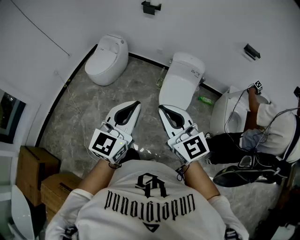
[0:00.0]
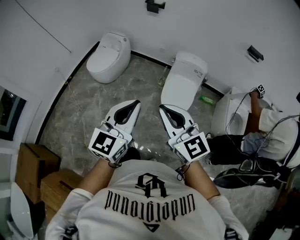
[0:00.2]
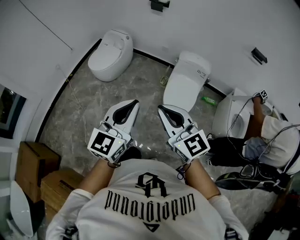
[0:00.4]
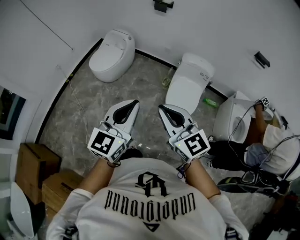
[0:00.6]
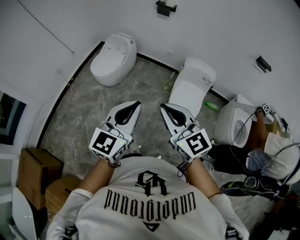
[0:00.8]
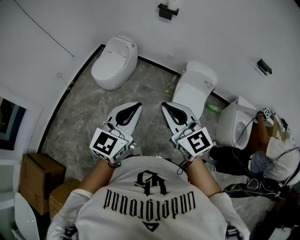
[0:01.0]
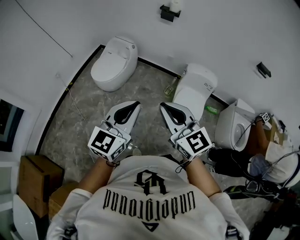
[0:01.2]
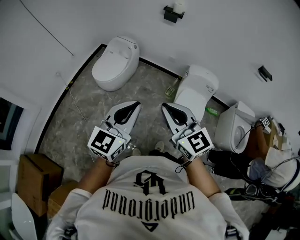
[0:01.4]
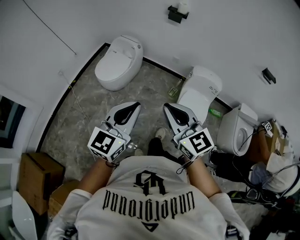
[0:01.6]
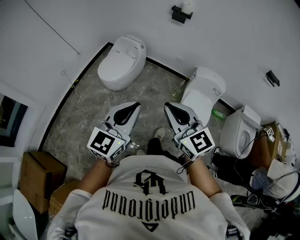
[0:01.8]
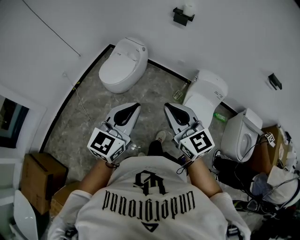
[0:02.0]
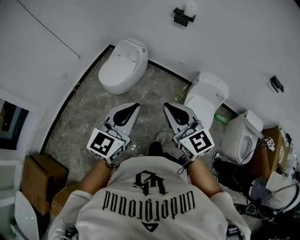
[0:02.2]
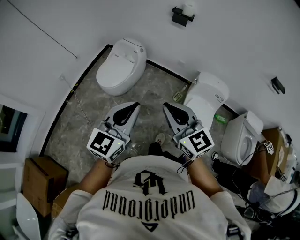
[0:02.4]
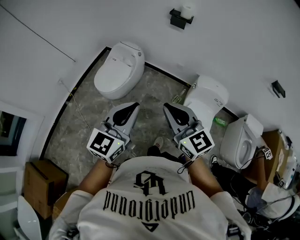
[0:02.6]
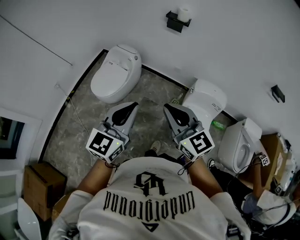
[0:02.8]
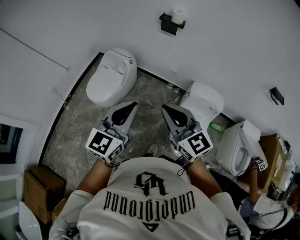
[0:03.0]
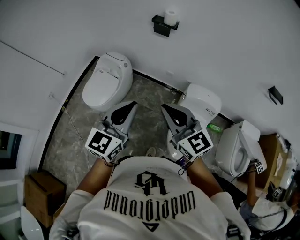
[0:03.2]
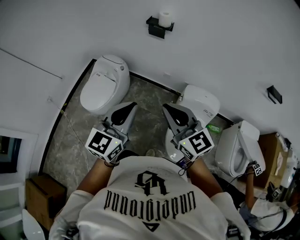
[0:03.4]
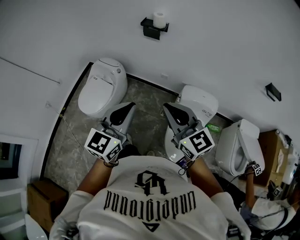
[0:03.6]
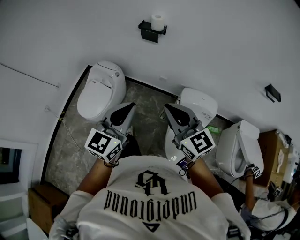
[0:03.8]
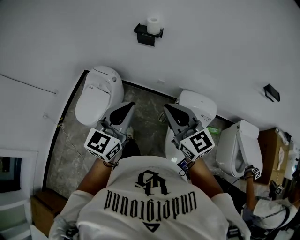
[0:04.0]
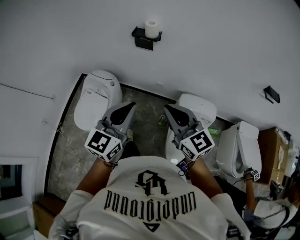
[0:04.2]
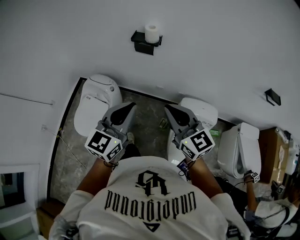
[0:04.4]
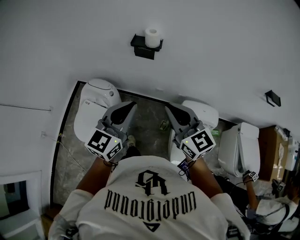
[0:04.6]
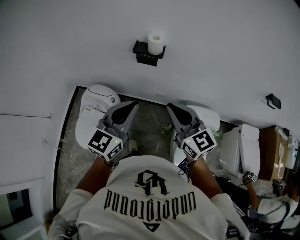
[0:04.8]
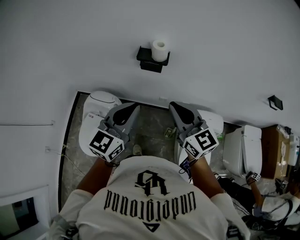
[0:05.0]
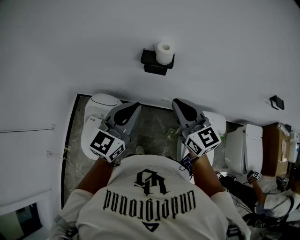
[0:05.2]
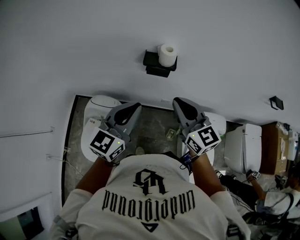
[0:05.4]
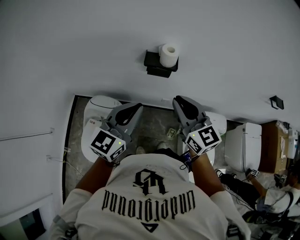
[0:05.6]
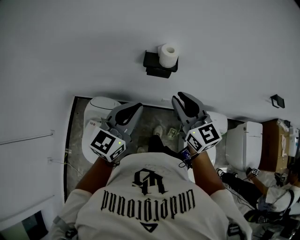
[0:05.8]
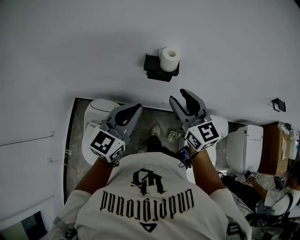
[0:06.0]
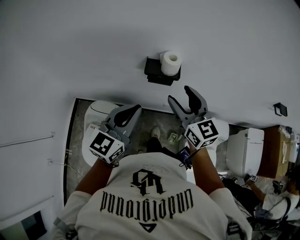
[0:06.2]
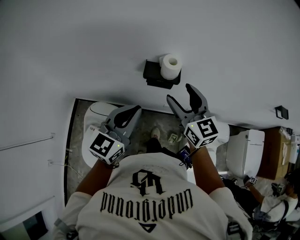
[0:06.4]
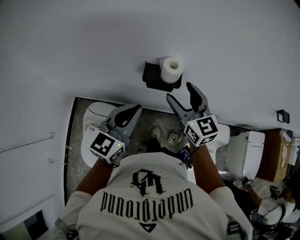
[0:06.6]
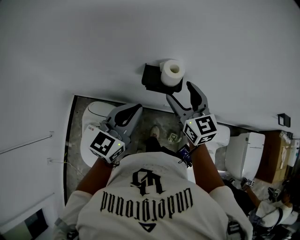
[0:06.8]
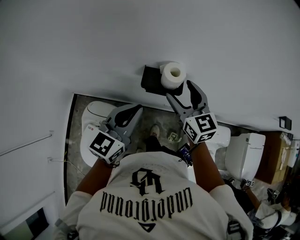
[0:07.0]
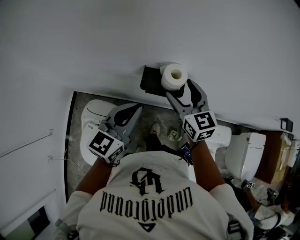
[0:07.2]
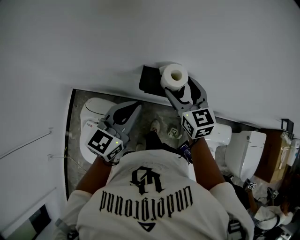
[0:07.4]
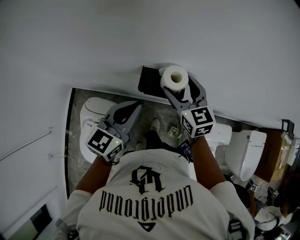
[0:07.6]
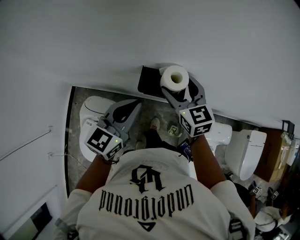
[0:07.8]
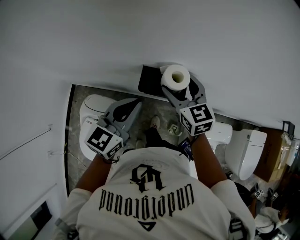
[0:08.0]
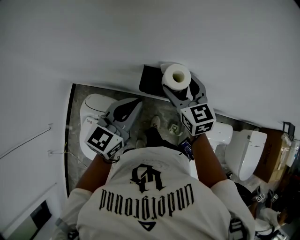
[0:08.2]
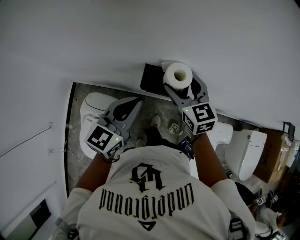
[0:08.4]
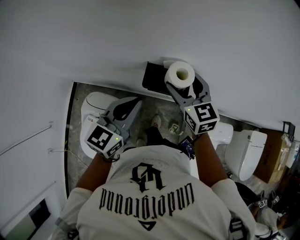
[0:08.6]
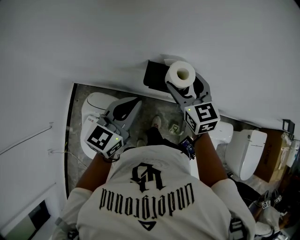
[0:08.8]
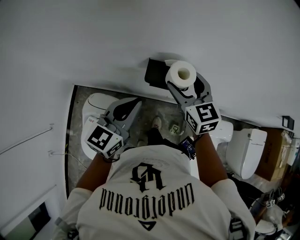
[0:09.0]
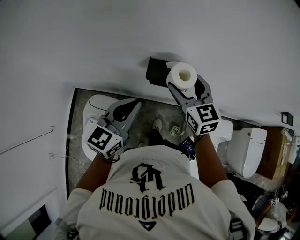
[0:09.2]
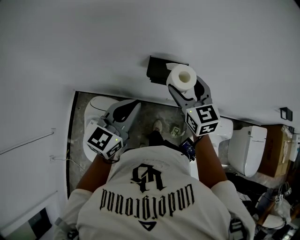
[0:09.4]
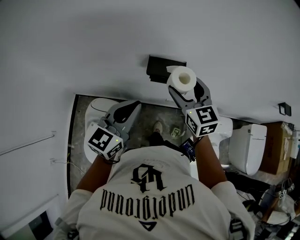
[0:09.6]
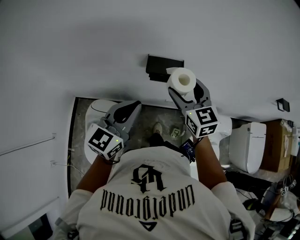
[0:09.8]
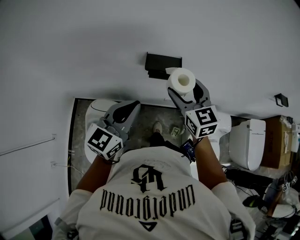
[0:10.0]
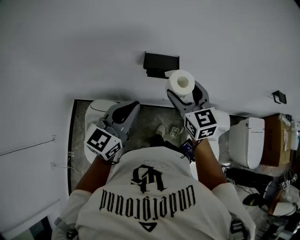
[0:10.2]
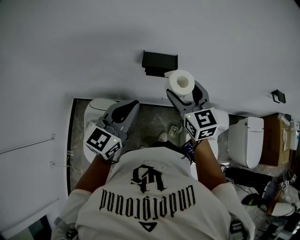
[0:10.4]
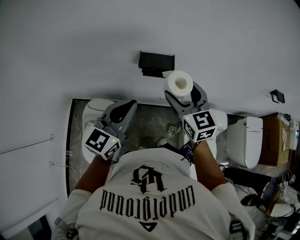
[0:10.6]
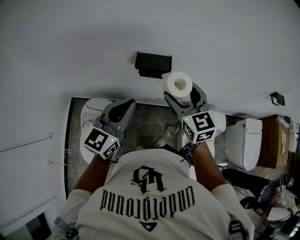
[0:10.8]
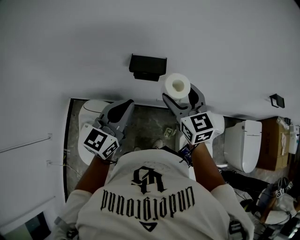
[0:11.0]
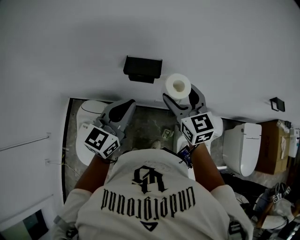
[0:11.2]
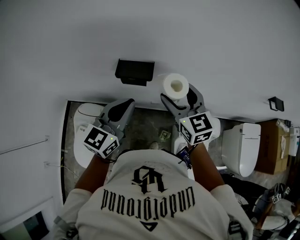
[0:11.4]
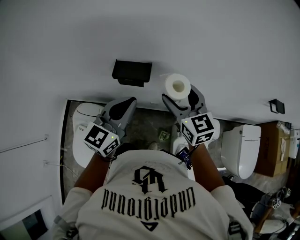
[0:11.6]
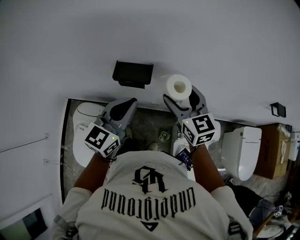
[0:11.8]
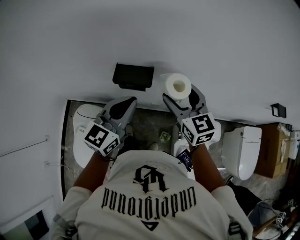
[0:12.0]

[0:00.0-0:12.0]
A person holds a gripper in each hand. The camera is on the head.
0:00.0 to 0:01.6: The right gripper is displaced forward and to the left by about 25 cm. The left gripper goes about 25 cm to the left and forward.
0:01.6 to 0:03.0: Both grippers move forward, approximately 25 cm.
0:03.0 to 0:04.4: Both grippers move forward, roughly 25 cm.
0:04.4 to 0:06.0: The grippers both shift forward and to the left by about 30 cm. The right gripper opens.
0:06.0 to 0:07.6: The right gripper is displaced forward and downward by roughly 25 cm, and opens up. Meanwhile the left gripper is displaced forward by roughly 20 cm.
0:07.6 to 0:09.0: The grippers move only a little.
0:09.0 to 0:10.4: The right gripper goes about 15 cm backward. The left gripper goes approximately 15 cm backward and upward.
0:10.4 to 0:12.0: The left gripper shifts approximately 15 cm forward and to the right, while the right gripper is displaced to the right and forward by some 15 cm.

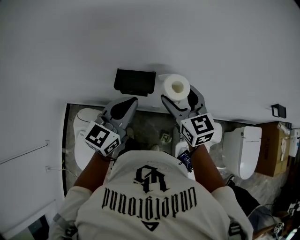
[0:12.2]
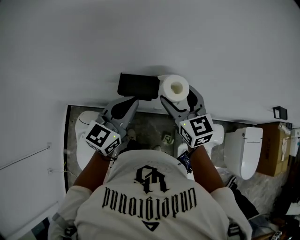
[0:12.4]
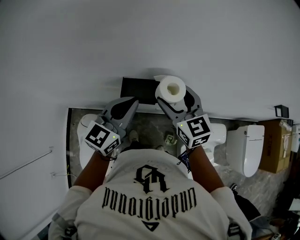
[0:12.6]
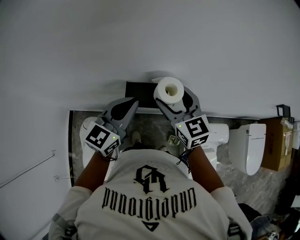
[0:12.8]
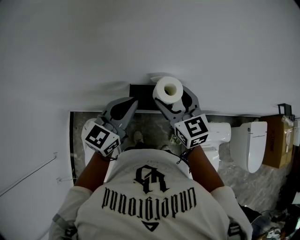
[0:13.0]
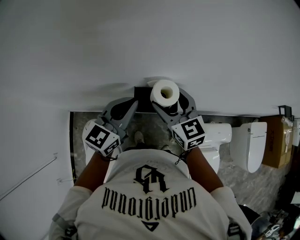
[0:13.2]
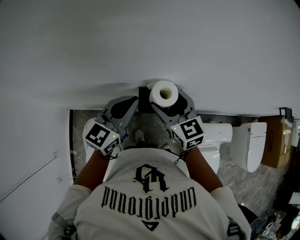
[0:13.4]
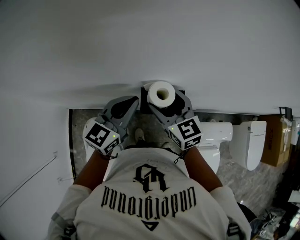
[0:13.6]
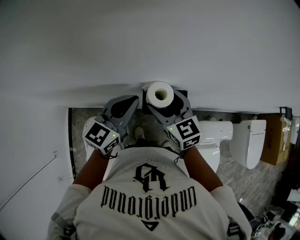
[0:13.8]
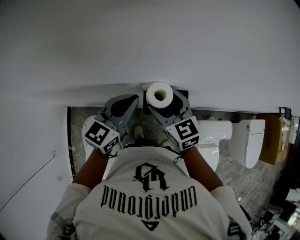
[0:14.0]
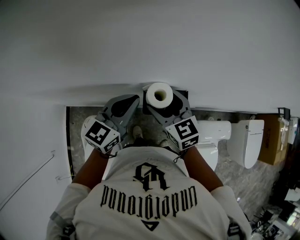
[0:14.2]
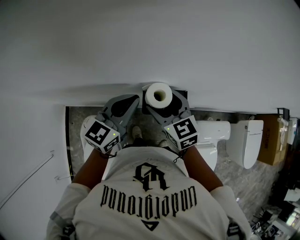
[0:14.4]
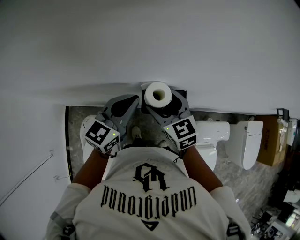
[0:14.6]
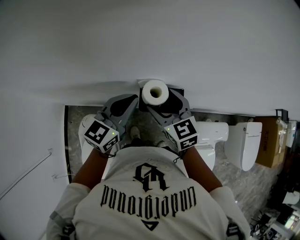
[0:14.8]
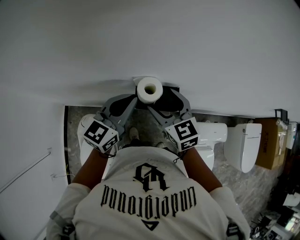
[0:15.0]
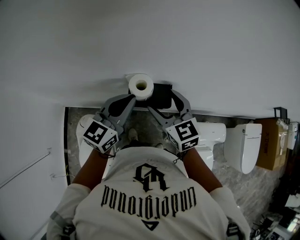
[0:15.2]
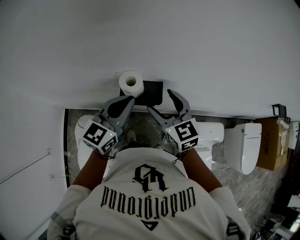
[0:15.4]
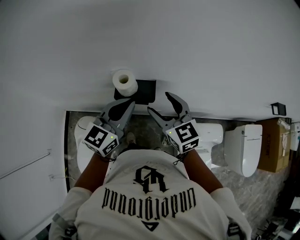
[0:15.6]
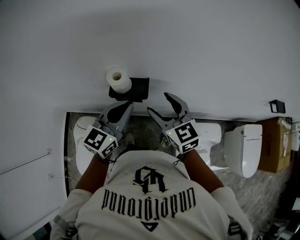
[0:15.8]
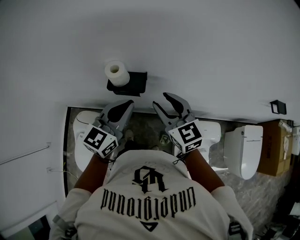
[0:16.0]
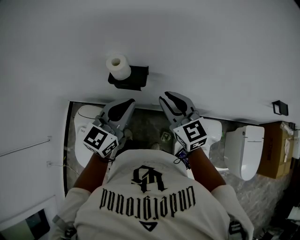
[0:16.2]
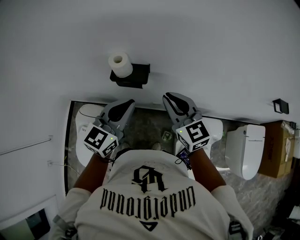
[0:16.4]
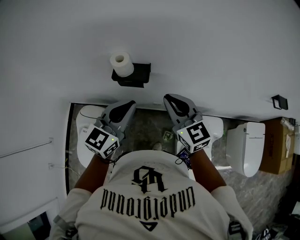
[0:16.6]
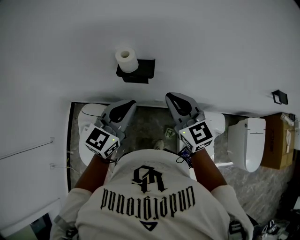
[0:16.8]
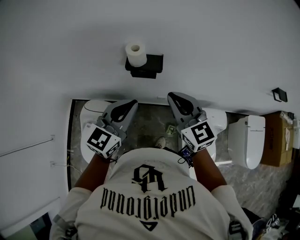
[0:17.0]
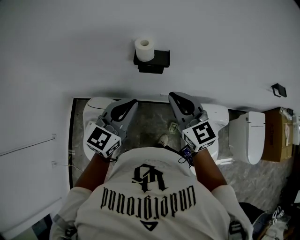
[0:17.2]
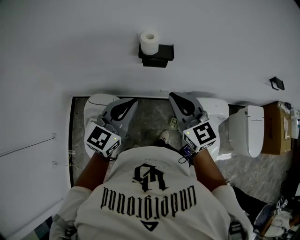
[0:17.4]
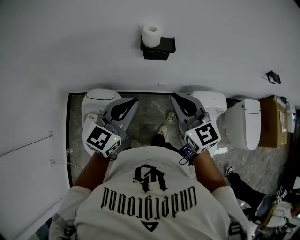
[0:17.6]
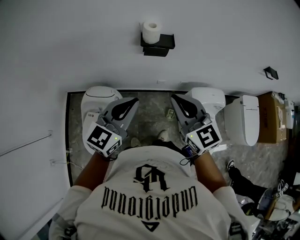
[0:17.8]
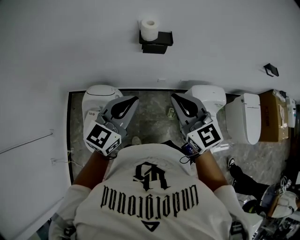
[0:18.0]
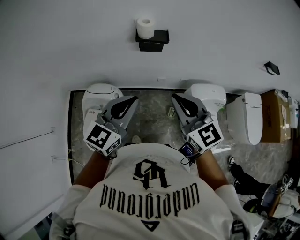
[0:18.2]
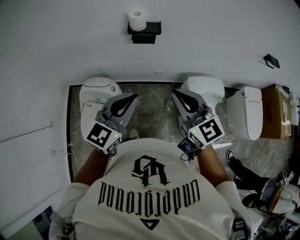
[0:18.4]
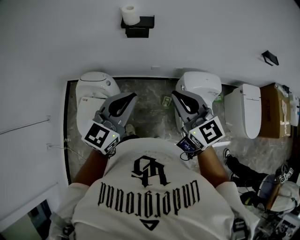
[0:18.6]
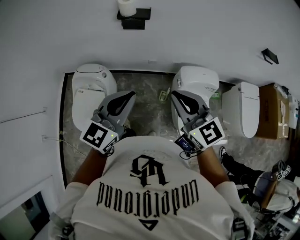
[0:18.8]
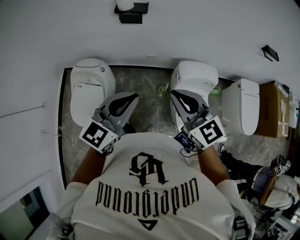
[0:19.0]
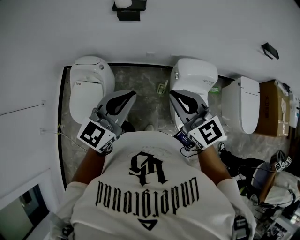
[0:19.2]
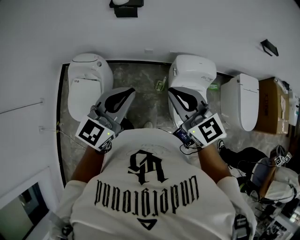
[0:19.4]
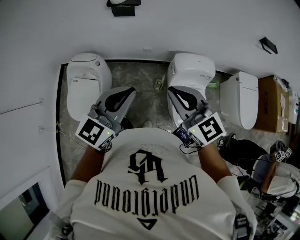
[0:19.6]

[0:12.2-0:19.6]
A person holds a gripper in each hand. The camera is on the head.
0:12.2 to 0:13.6: Both grippers travel together to the left and forward, about 20 cm.
0:13.6 to 0:15.2: The right gripper moves to the right, approximately 5 cm; the left gripper shifts by approximately 5 cm.
0:15.2 to 0:16.6: The left gripper shifts approximately 20 cm backward and to the right. Meanwhile the right gripper goes approximately 20 cm backward, to the right and upward, and closes its fingers.
0:16.6 to 0:18.2: Both grippers travel together backward and to the left, approximately 25 cm.
0:18.2 to 0:19.6: Both grippers travel together to the right and backward, approximately 20 cm.

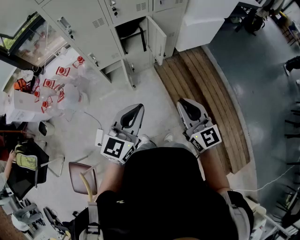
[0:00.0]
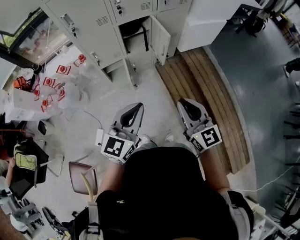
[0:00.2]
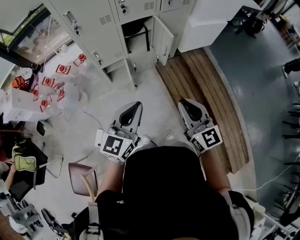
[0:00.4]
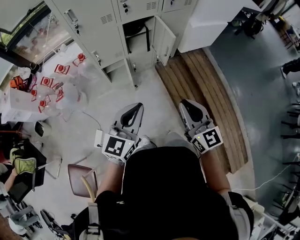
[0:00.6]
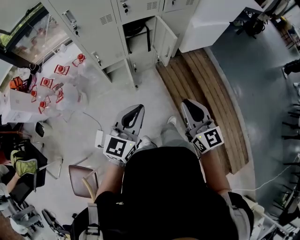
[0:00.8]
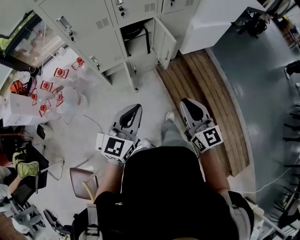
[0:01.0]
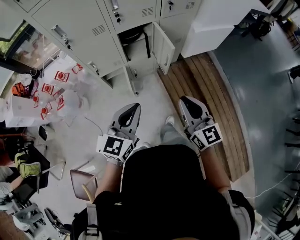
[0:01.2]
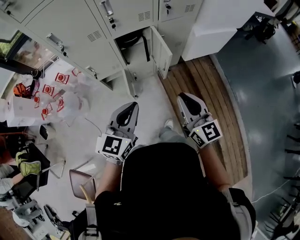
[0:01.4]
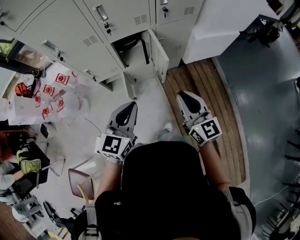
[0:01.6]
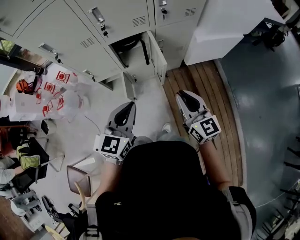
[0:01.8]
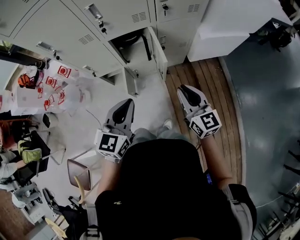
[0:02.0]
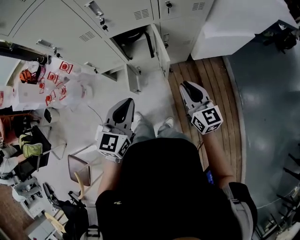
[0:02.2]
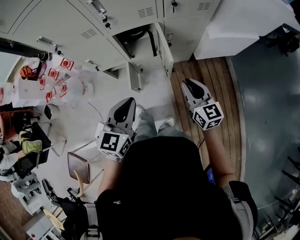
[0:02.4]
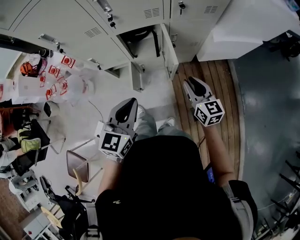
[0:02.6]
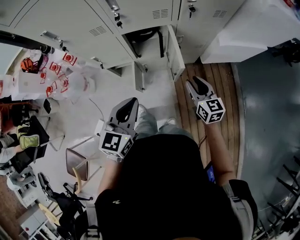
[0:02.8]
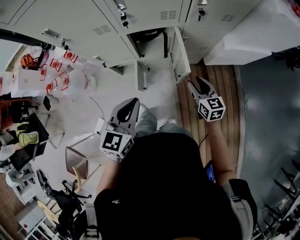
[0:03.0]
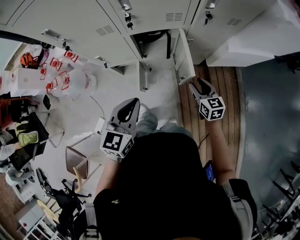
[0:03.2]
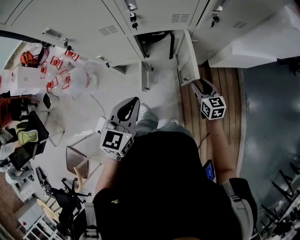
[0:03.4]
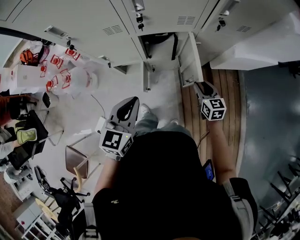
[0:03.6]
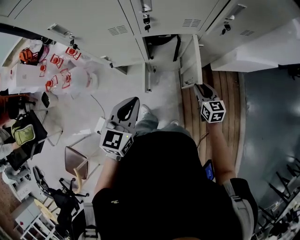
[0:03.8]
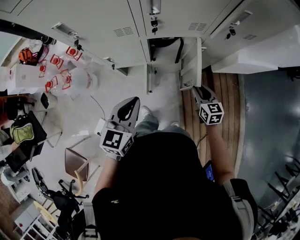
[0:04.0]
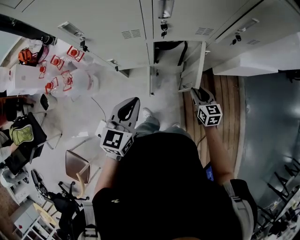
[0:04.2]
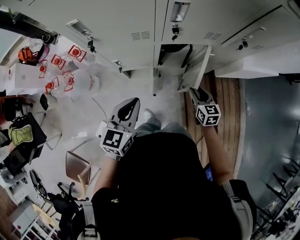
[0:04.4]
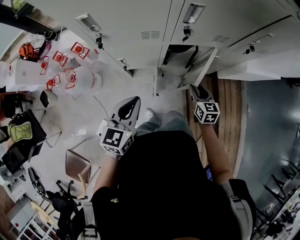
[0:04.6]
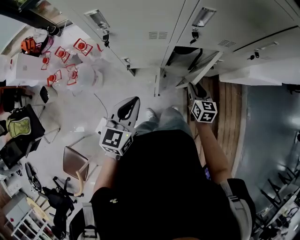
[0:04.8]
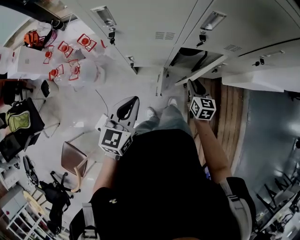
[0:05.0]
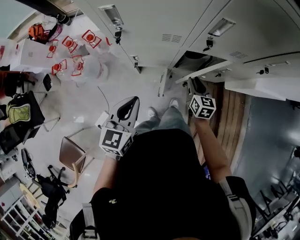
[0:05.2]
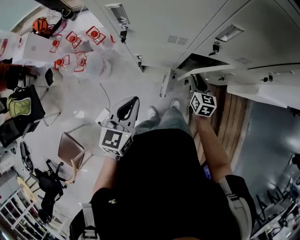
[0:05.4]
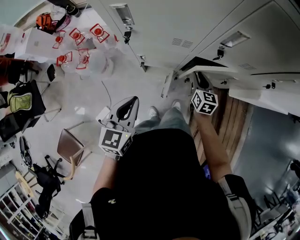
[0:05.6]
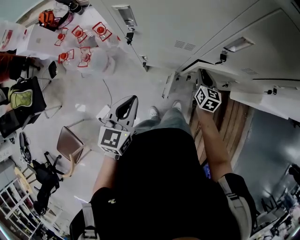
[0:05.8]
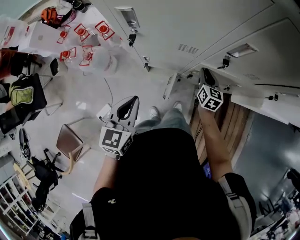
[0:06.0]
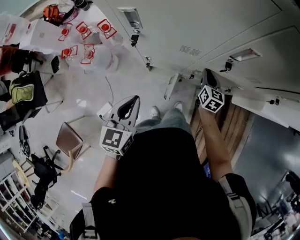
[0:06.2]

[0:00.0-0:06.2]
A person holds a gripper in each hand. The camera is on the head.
0:00.0 to 0:01.6: Both grippers travel together forward, about 25 cm.
0:01.6 to 0:03.2: The right gripper goes about 30 cm downward and forward, rotates roughly 30 degrees, and opens; the left gripper goes about 10 cm forward.
0:03.2 to 0:04.6: Both grippers travel together to the left, approximately 15 cm.
0:04.6 to 0:06.2: The left gripper is displaced to the left by roughly 10 cm; the right gripper travels forward and to the left by about 20 cm, and closes.
